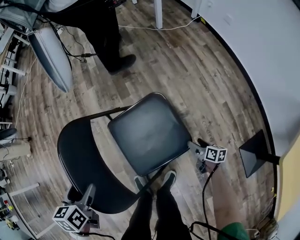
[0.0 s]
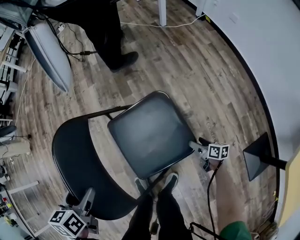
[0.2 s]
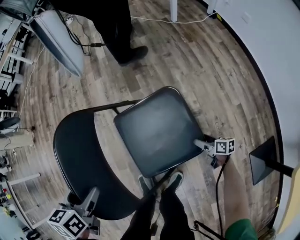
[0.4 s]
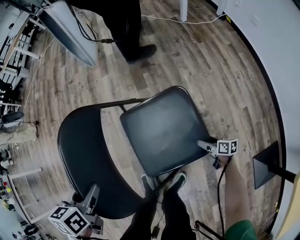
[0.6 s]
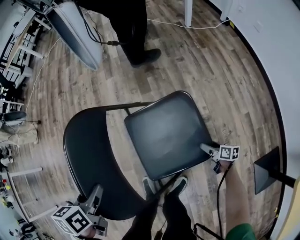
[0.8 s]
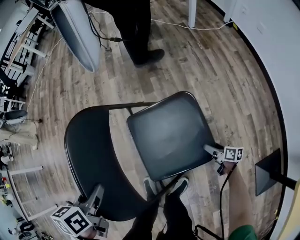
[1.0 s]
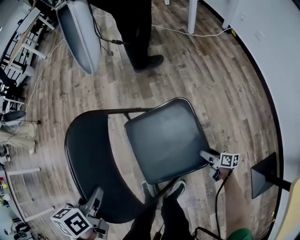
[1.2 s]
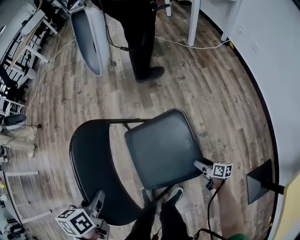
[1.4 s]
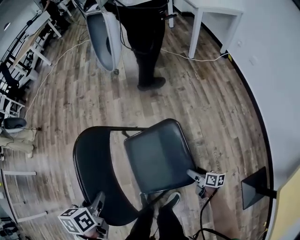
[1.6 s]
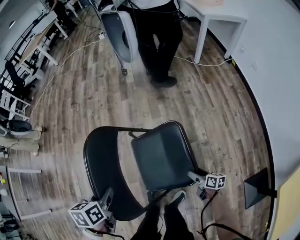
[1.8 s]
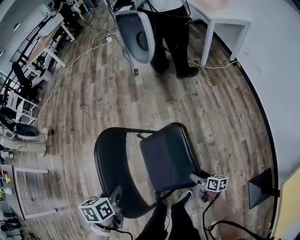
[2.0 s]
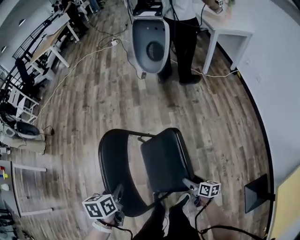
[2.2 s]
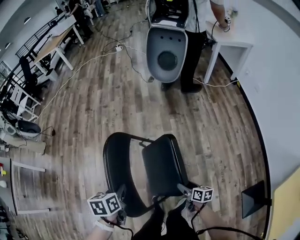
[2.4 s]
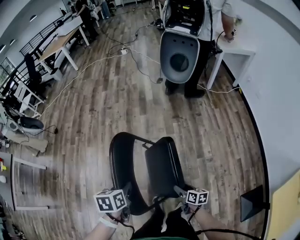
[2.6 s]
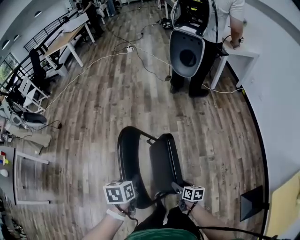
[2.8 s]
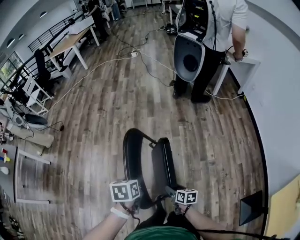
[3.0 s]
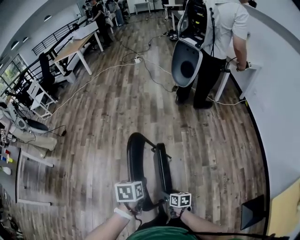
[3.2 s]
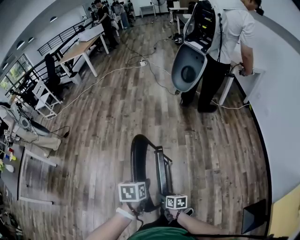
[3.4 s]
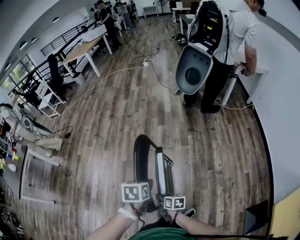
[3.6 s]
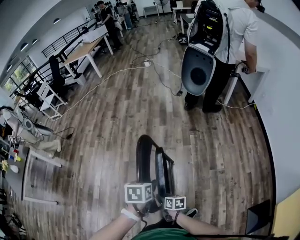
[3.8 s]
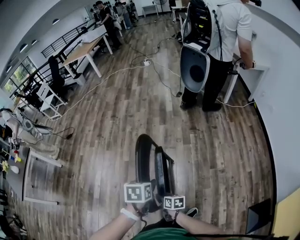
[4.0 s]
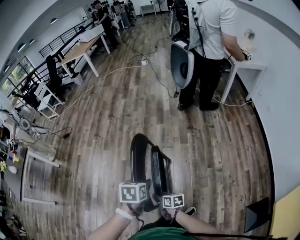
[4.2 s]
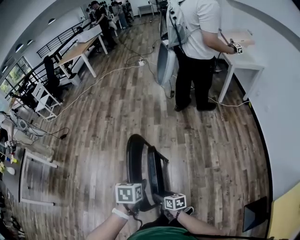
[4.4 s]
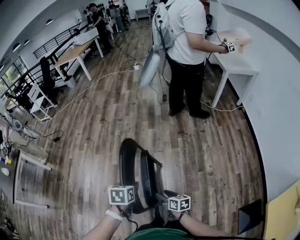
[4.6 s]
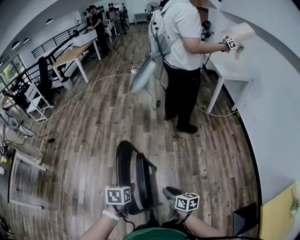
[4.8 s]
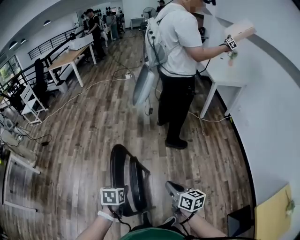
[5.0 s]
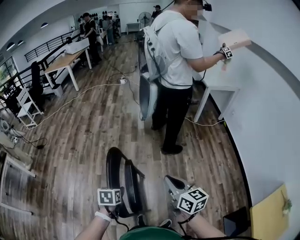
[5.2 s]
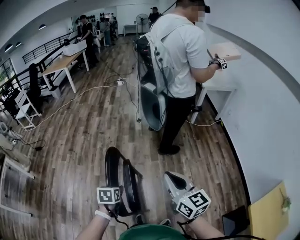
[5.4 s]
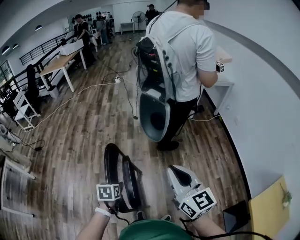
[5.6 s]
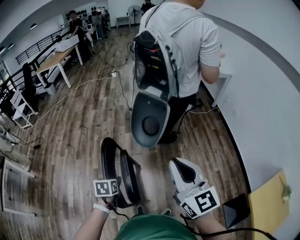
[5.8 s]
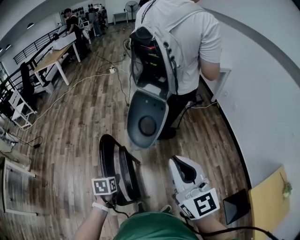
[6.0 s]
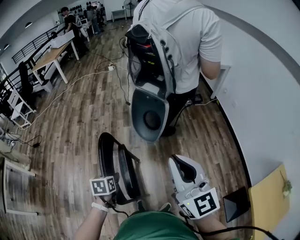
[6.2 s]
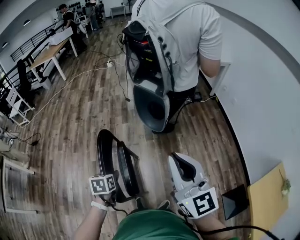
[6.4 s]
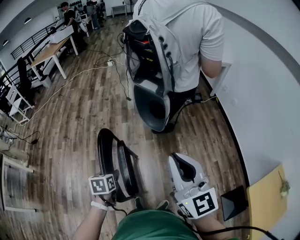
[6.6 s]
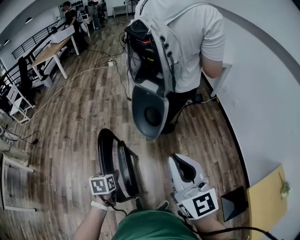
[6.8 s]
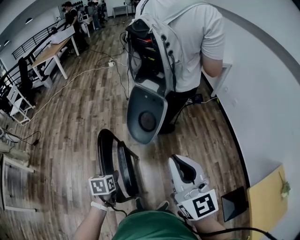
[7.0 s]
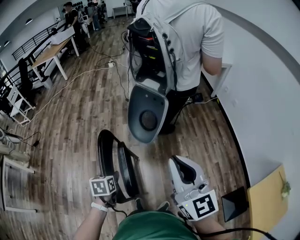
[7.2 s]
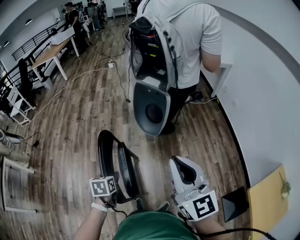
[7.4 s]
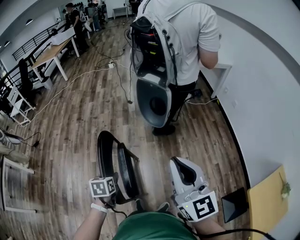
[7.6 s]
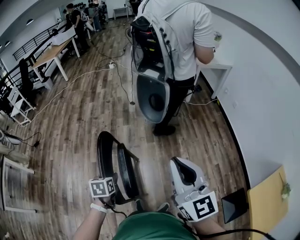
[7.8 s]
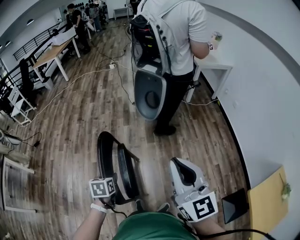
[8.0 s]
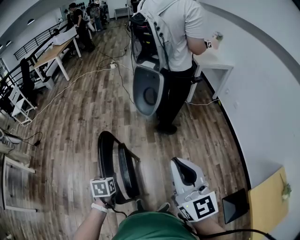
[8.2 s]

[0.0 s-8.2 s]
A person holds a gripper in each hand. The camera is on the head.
0.0 to 1.6 s: The left gripper goes approximately 5 cm to the left, and closes up, while the right gripper goes about 15 cm to the left and upward.
1.6 to 3.2 s: The left gripper moves upward and to the left, roughly 15 cm. Meanwhile the right gripper shifts approximately 40 cm to the left and upward, and changes its angle by about 20 degrees.
3.2 to 5.0 s: The right gripper is displaced upward and to the right by about 25 cm, rotates some 30 degrees, and closes up.
5.0 to 6.6 s: The right gripper heads upward, covering approximately 25 cm, and rotates approximately 50 degrees.
6.6 to 8.2 s: The grippers stay close to where they were, moving slightly.

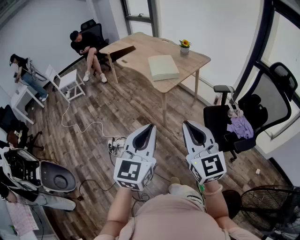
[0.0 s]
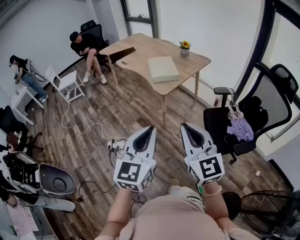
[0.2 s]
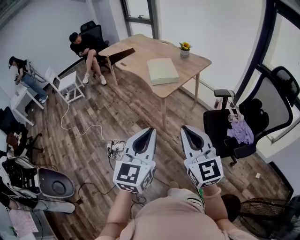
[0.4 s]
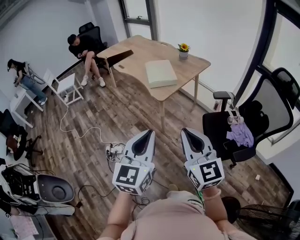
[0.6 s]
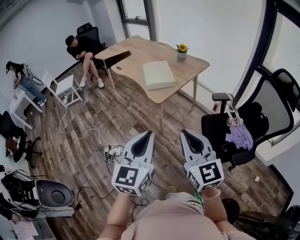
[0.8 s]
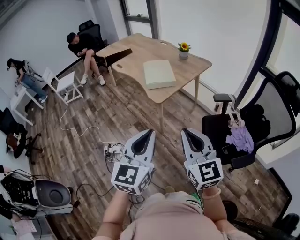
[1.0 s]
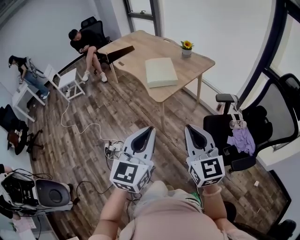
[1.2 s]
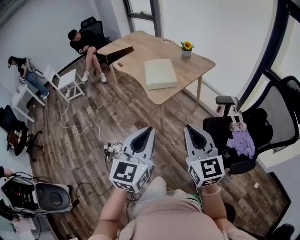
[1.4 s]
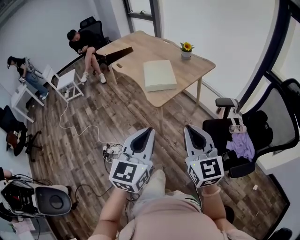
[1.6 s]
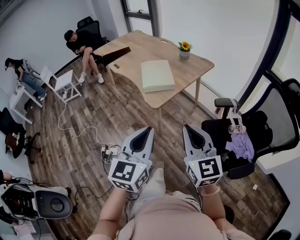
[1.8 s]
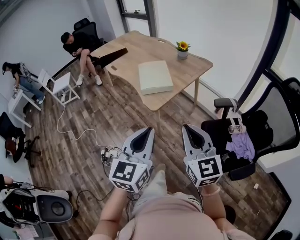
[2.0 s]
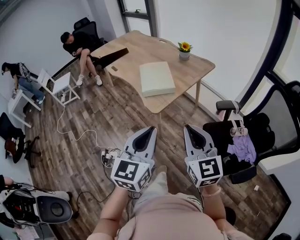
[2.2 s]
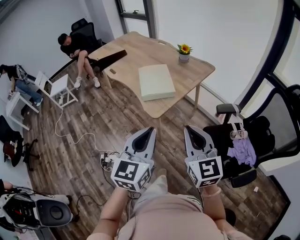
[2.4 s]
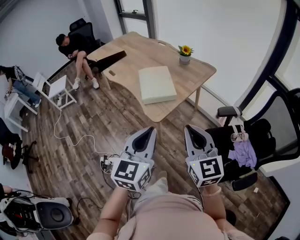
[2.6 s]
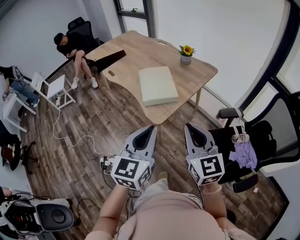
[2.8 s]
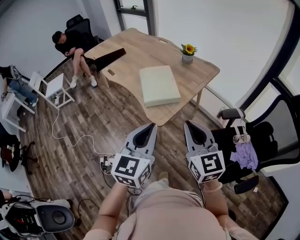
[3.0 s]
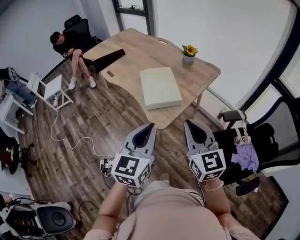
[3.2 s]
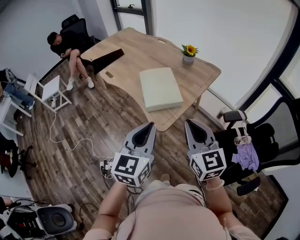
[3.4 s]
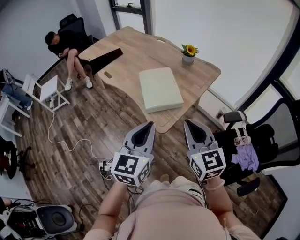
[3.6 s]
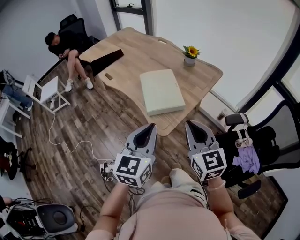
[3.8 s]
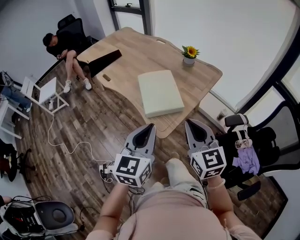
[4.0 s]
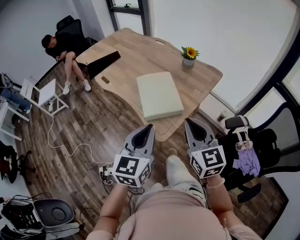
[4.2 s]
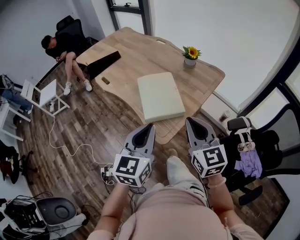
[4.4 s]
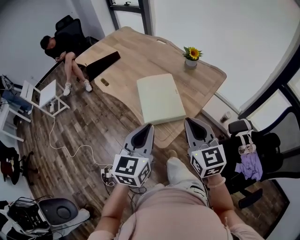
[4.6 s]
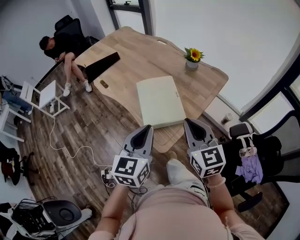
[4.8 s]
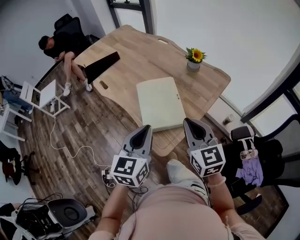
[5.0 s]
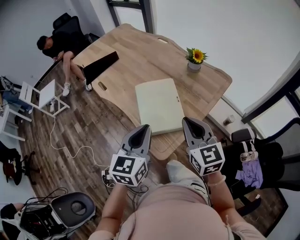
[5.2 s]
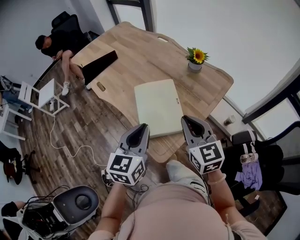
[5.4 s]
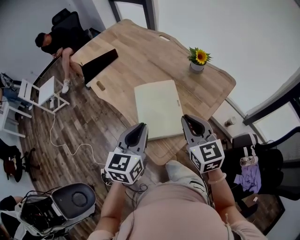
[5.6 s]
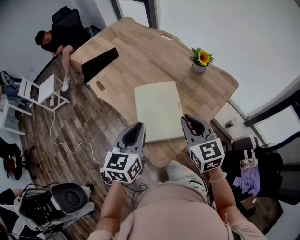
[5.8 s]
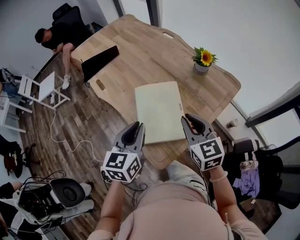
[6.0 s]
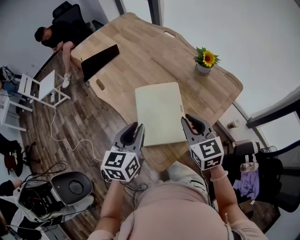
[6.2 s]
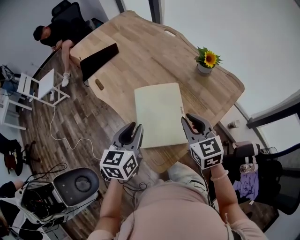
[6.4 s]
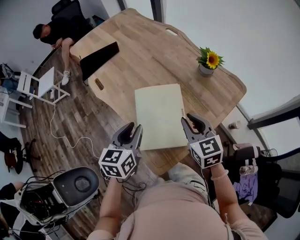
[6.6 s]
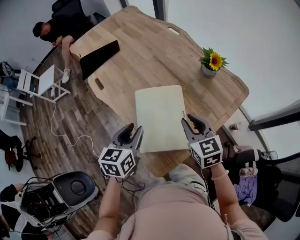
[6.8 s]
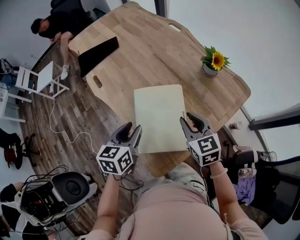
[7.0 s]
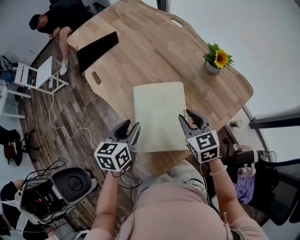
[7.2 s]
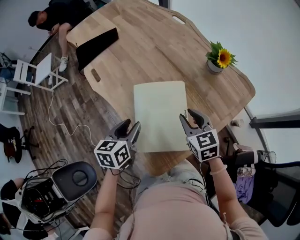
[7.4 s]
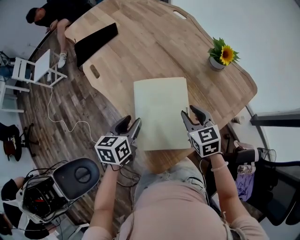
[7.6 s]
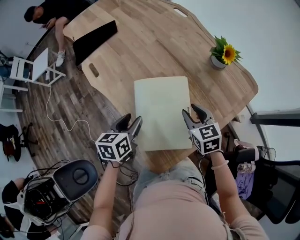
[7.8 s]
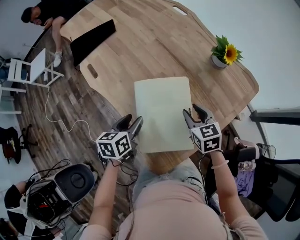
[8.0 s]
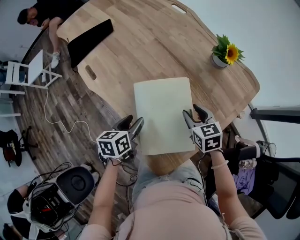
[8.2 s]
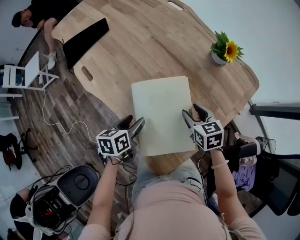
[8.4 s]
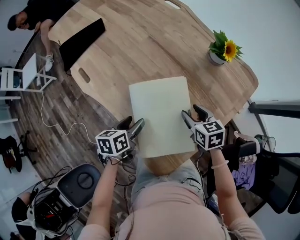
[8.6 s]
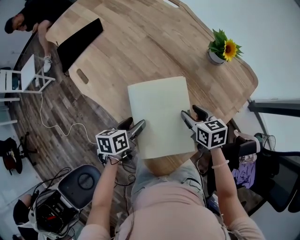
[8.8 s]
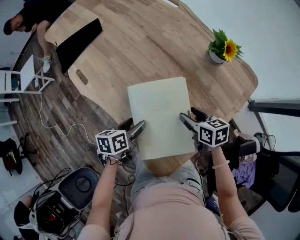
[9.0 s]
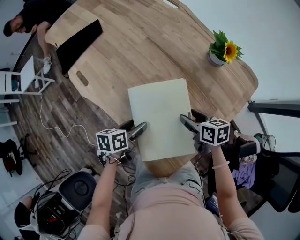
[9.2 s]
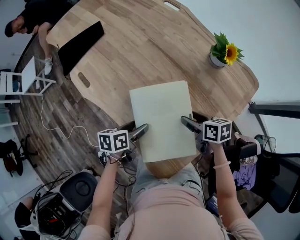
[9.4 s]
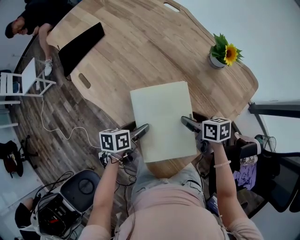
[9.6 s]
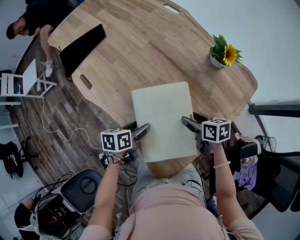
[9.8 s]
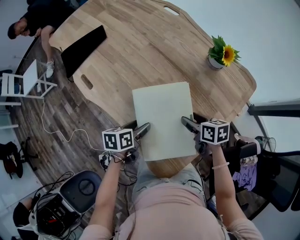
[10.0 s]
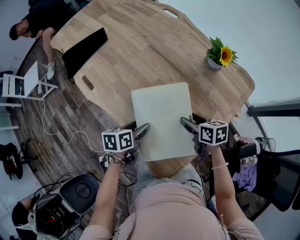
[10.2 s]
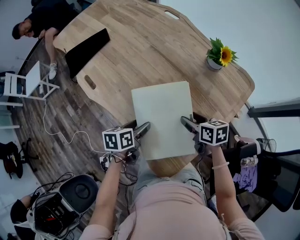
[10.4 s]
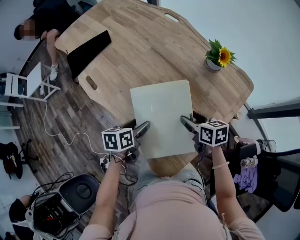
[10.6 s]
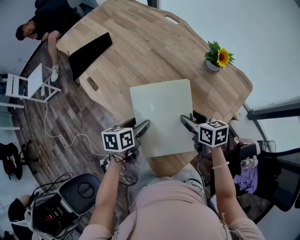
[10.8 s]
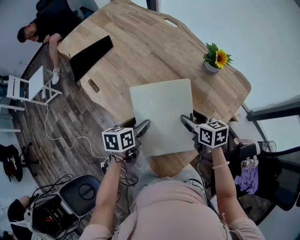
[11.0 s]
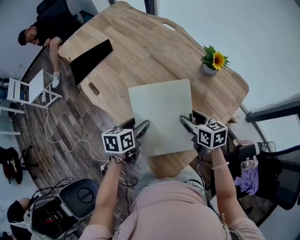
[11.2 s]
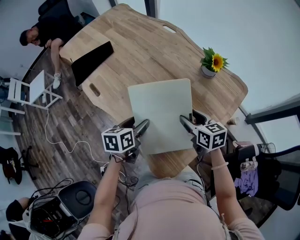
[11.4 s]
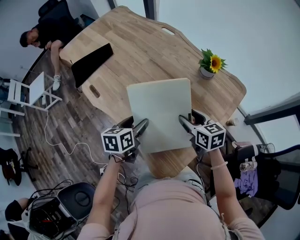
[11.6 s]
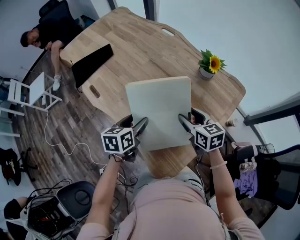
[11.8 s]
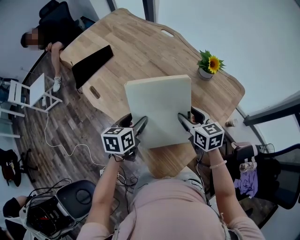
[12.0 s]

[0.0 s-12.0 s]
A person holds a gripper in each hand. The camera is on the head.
0.0 to 1.6 s: The grippers both shift forward and to the right by some 20 cm.
1.6 to 3.0 s: Both grippers travel together forward, some 20 cm.
3.0 to 4.4 s: Both grippers travel together forward, about 15 cm.
4.4 to 6.0 s: Both grippers travel together forward, roughly 20 cm.
6.0 to 7.6 s: Both grippers move downward and forward, about 15 cm. The left gripper rotates roughly 20 degrees, and opens.
7.6 to 9.0 s: Both grippers travel together downward, roughly 10 cm. The right gripper rotates approximately 30 degrees, and opens up; the left gripper swivels about 20 degrees, and opens up.
9.0 to 10.4 s: The grippers stay close to where they were, moving slightly.
10.4 to 12.0 s: Both grippers move upward, roughly 10 cm. The right gripper rotates some 30 degrees; the left gripper rotates some 20 degrees.

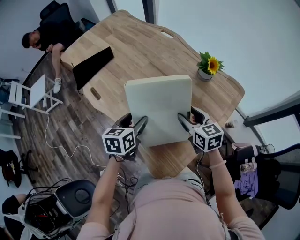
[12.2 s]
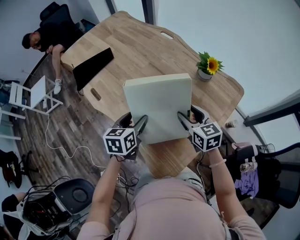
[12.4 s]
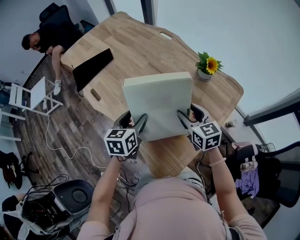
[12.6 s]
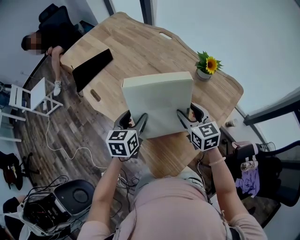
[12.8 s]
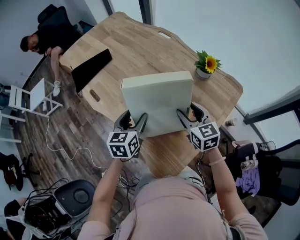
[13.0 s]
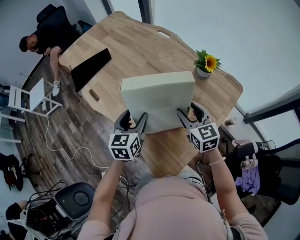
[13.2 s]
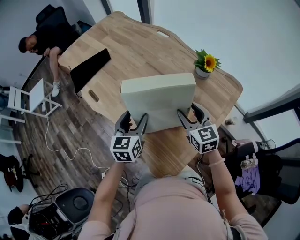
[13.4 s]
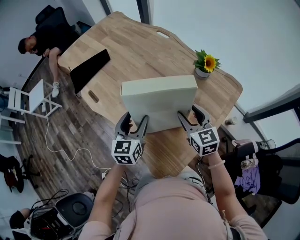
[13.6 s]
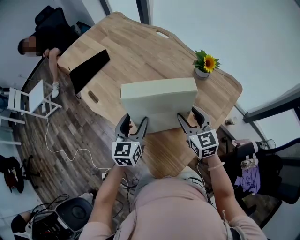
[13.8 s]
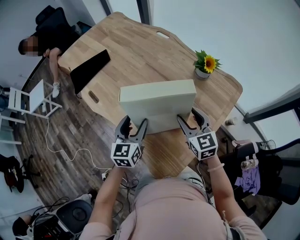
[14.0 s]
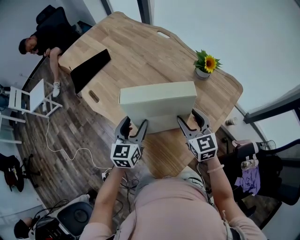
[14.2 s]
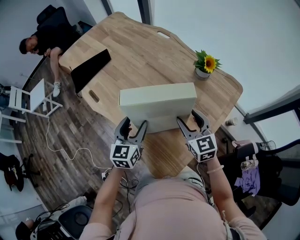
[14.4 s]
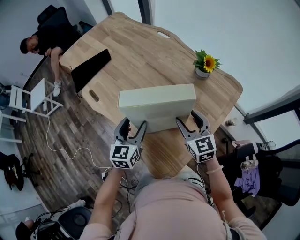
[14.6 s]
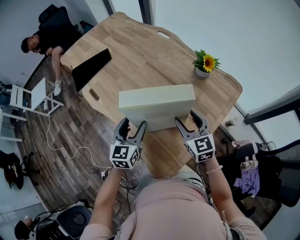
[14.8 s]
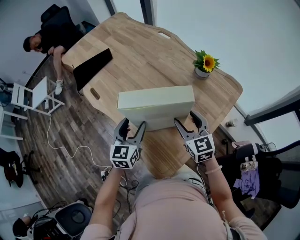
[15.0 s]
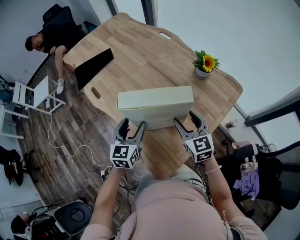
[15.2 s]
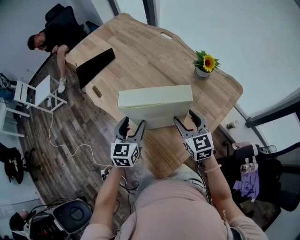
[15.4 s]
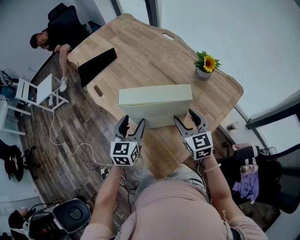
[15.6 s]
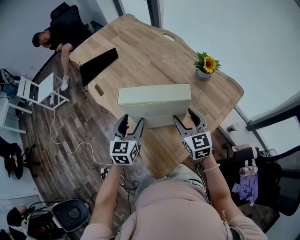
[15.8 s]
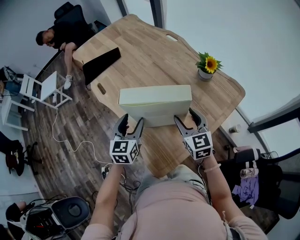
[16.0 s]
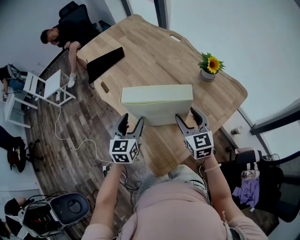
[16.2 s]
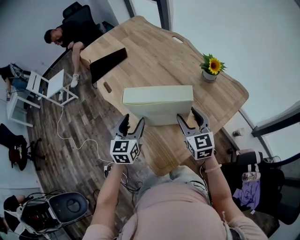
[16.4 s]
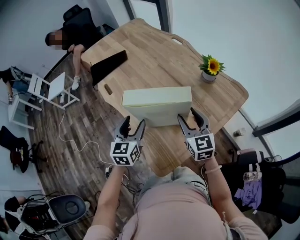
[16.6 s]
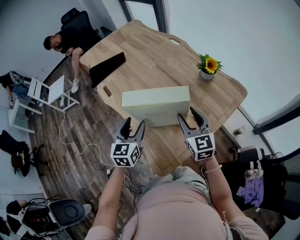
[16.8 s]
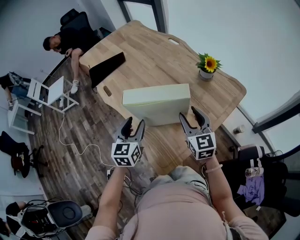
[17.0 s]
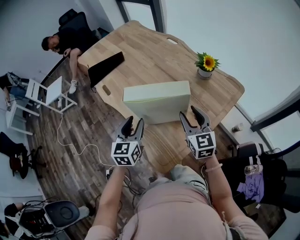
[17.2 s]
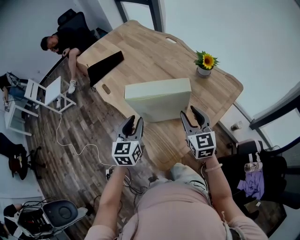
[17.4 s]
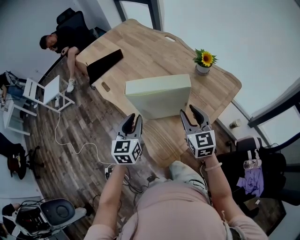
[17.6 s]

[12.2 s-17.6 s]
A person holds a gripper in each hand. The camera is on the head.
12.2 to 13.6 s: The left gripper rotates roughly 20 degrees.
13.6 to 15.0 s: The grippers move only a little.
15.0 to 16.2 s: There are only small adjustments of the grippers.
16.2 to 17.6 s: Both grippers move backward, approximately 5 cm. The right gripper closes; the left gripper closes.
